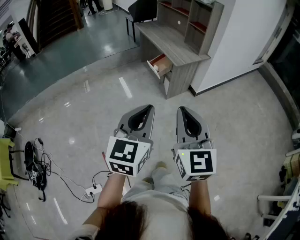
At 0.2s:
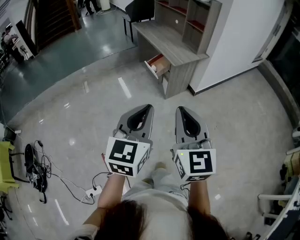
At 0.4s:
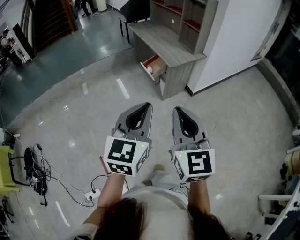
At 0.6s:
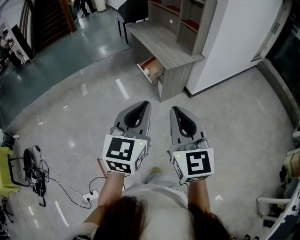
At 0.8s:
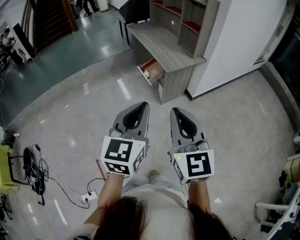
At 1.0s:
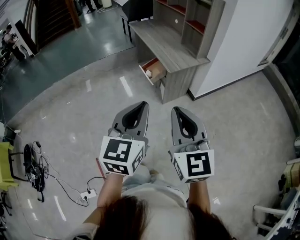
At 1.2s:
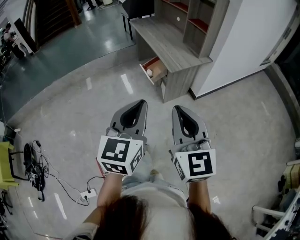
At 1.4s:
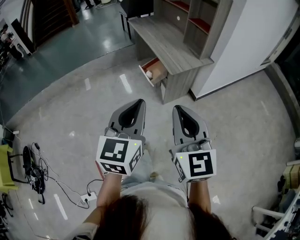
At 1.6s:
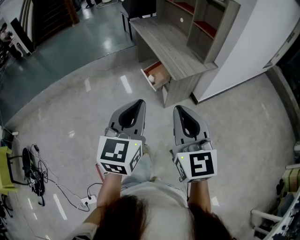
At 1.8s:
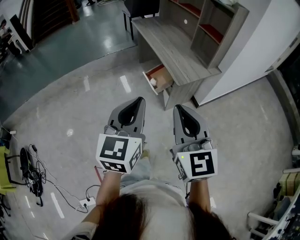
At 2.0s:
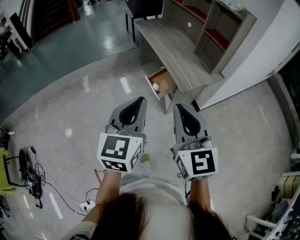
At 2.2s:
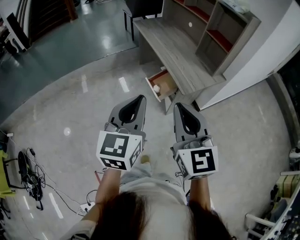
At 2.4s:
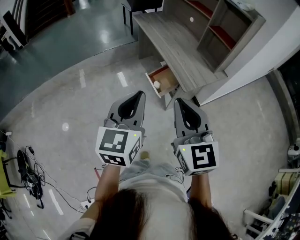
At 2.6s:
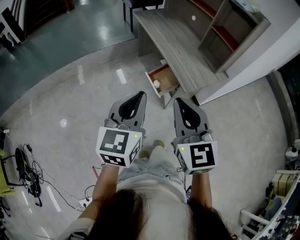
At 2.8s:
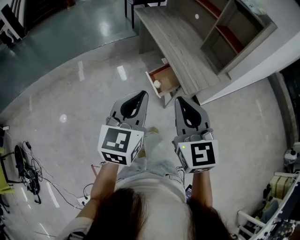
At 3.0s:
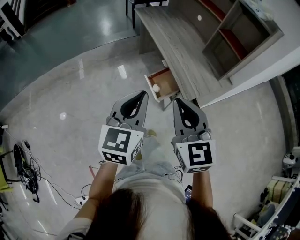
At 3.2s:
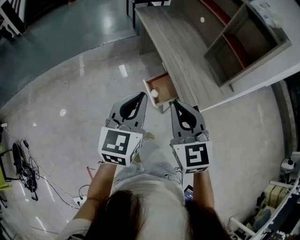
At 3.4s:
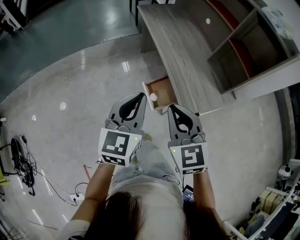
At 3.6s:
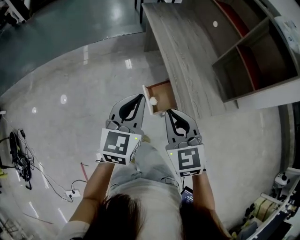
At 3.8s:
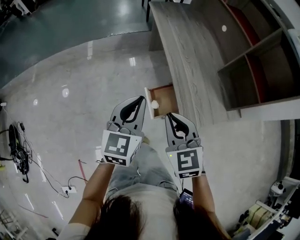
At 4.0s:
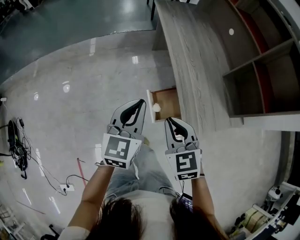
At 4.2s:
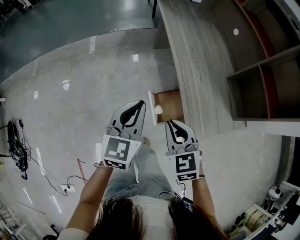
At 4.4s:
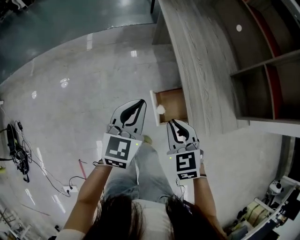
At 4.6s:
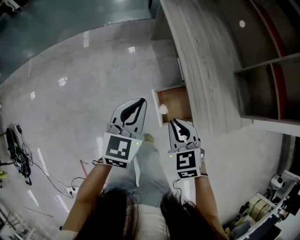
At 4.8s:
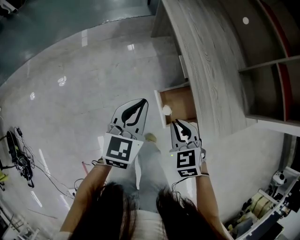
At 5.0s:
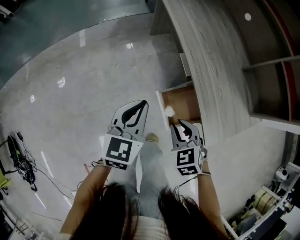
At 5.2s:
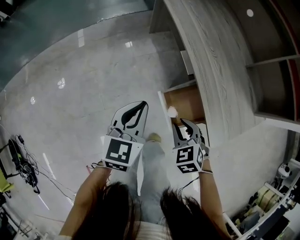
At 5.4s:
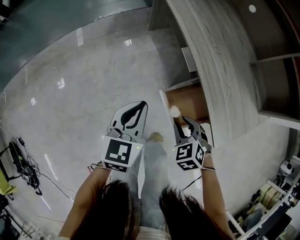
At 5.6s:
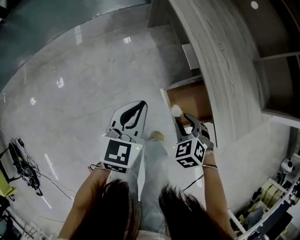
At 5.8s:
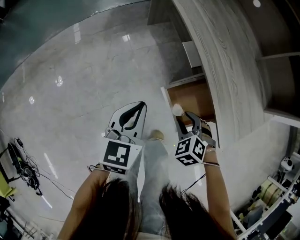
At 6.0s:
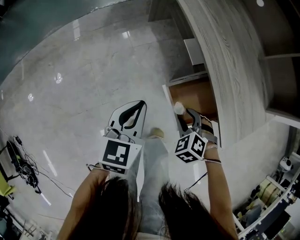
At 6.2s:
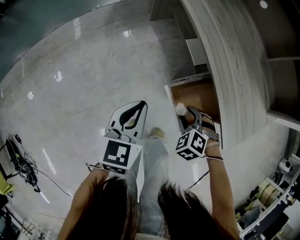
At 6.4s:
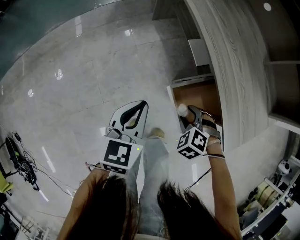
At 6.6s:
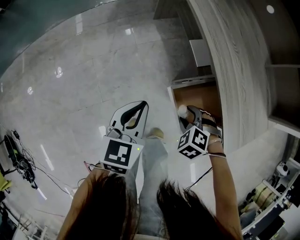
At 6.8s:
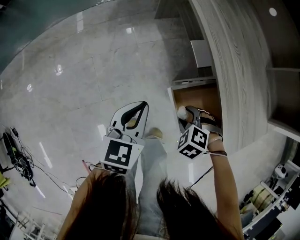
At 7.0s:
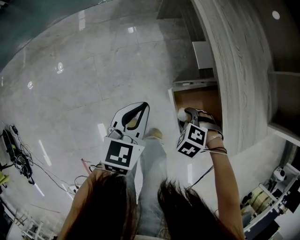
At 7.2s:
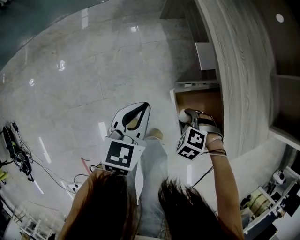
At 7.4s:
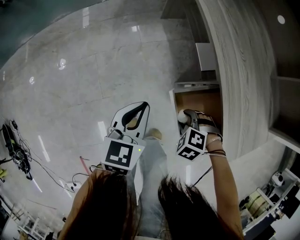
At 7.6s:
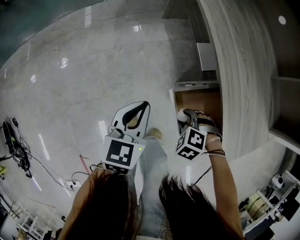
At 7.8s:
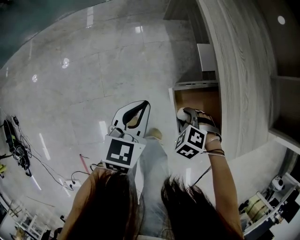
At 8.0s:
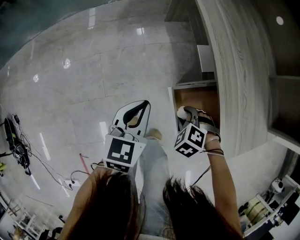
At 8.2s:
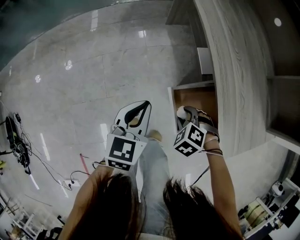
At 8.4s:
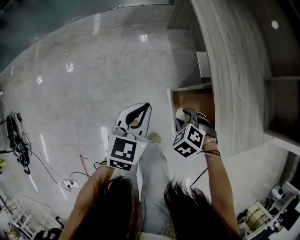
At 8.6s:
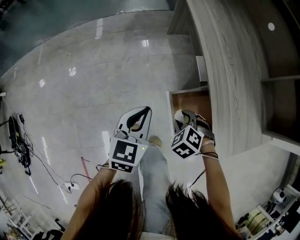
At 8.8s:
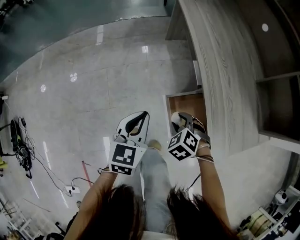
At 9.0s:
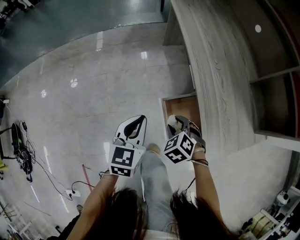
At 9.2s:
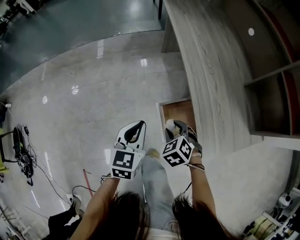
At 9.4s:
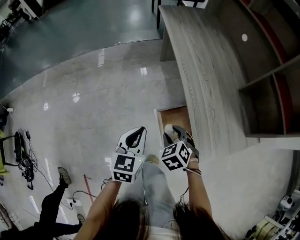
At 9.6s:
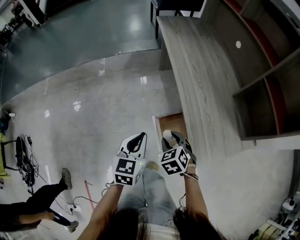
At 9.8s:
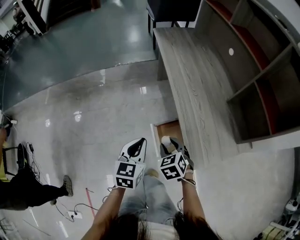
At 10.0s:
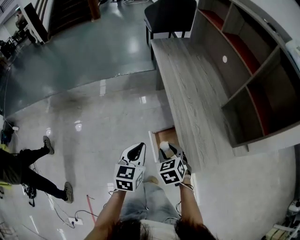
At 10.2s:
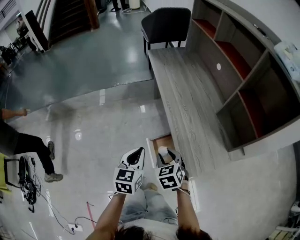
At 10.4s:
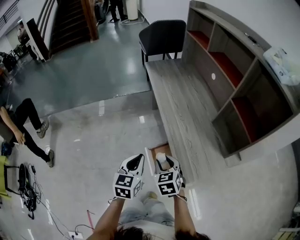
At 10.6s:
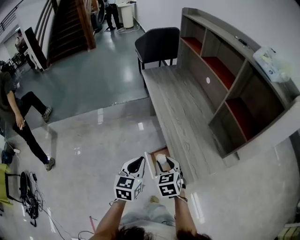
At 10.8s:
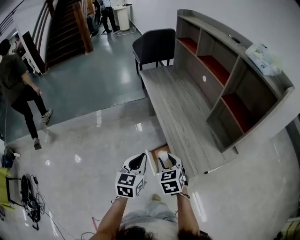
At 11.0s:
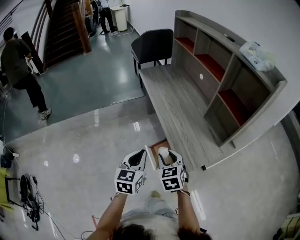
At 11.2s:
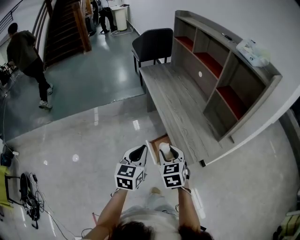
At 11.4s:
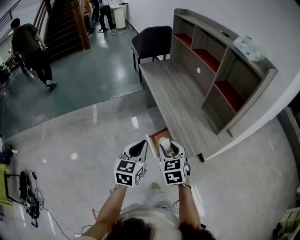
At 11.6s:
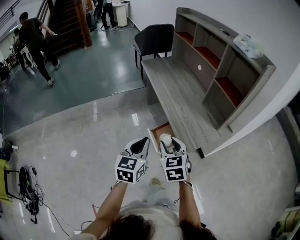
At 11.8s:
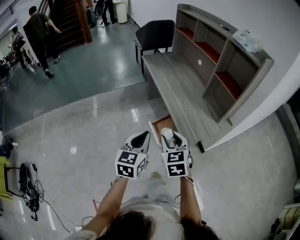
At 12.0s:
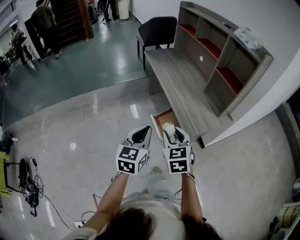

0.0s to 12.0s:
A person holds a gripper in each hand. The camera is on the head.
0.0s to 1.6s: Both grippers move forward, some 25 cm.
1.6s to 3.0s: The grippers both shift forward by approximately 25 cm.
3.0s to 4.4s: The left gripper travels forward and downward by some 25 cm; the right gripper is displaced downward and forward by about 30 cm, and swivels about 30 degrees.
4.4s to 6.0s: Both grippers move downward, some 20 cm. The right gripper changes its angle by about 40 degrees, and opens up.
6.0s to 7.6s: The right gripper goes roughly 5 cm downward, and swivels roughly 30 degrees.
7.6s to 9.0s: The left gripper travels upward by roughly 5 cm. Meanwhile the right gripper goes some 10 cm upward, and swivels about 30 degrees.
9.0s to 10.4s: The right gripper heads upward, covering about 20 cm, and swivels about 40 degrees. The left gripper travels upward and to the right by approximately 15 cm.
10.4s to 12.0s: The two grippers go some 20 cm backward and upward.

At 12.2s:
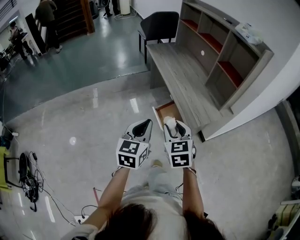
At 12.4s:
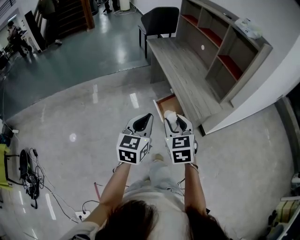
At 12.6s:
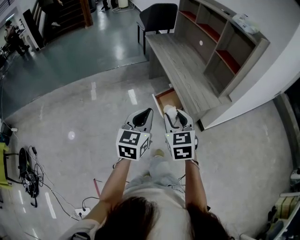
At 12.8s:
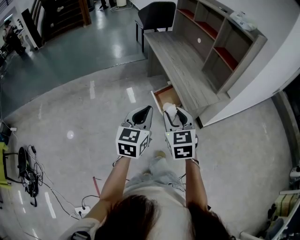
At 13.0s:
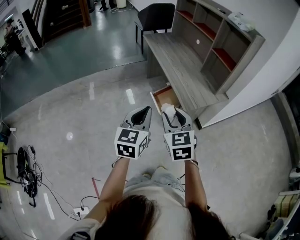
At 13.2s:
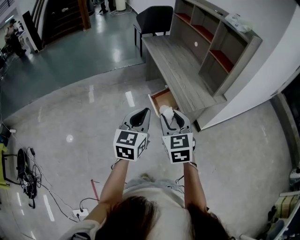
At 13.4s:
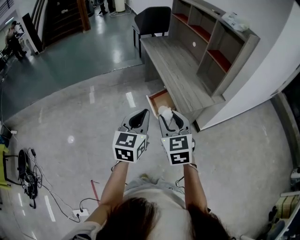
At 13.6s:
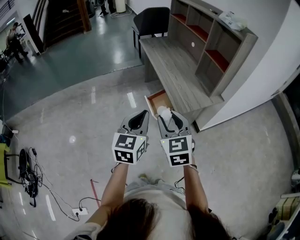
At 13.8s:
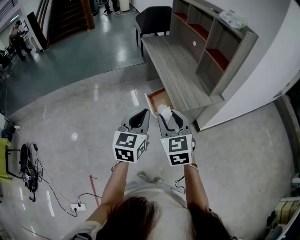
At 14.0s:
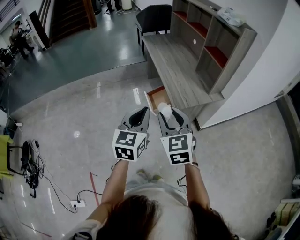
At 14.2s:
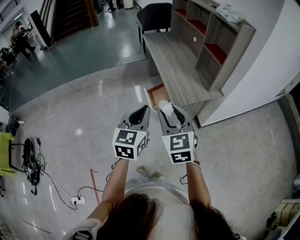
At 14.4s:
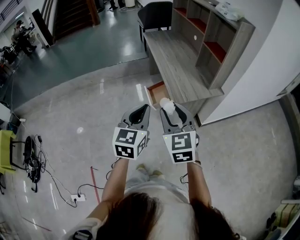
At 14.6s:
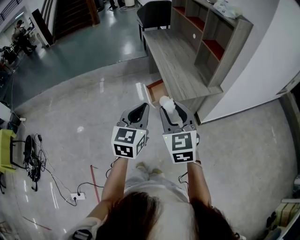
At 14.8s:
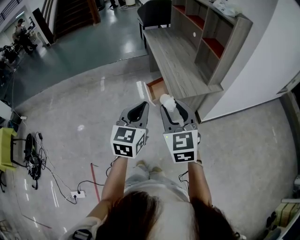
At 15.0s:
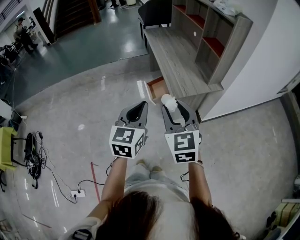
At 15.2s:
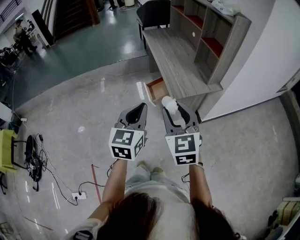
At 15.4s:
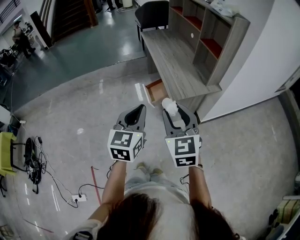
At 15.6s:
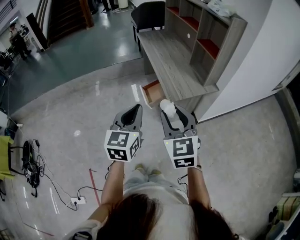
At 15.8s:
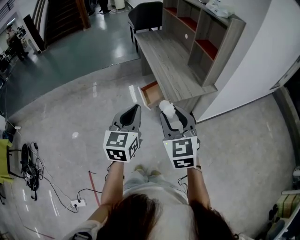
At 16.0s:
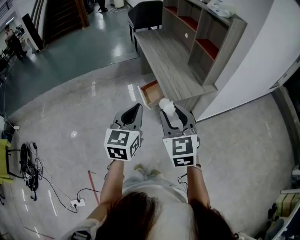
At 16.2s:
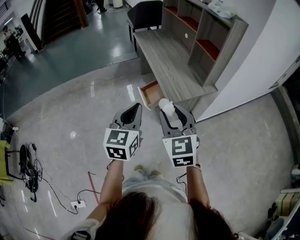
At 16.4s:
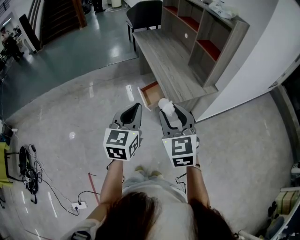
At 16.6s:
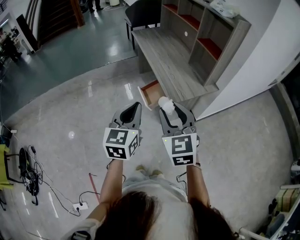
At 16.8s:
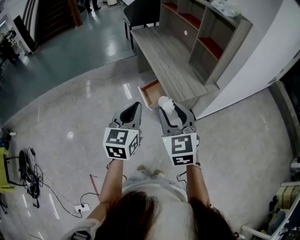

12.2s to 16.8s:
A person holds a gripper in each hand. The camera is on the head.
12.2s to 13.8s: The left gripper shifts about 10 cm backward and to the right. Meanwhile the right gripper shifts about 15 cm backward, upward and to the right.
13.8s to 15.2s: The right gripper moves to the right and backward, some 10 cm. The left gripper heads backward, covering approximately 5 cm.
15.2s to 16.8s: The left gripper goes some 10 cm forward and to the left; the right gripper shifts approximately 10 cm to the left and forward.

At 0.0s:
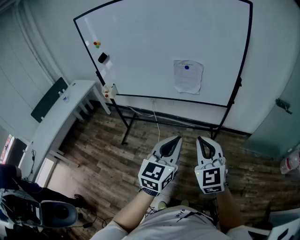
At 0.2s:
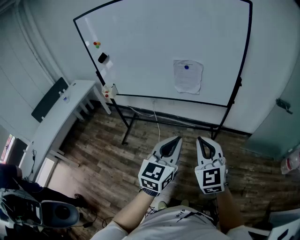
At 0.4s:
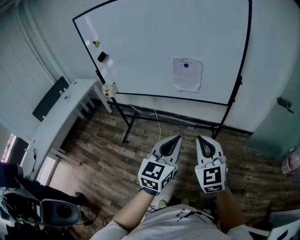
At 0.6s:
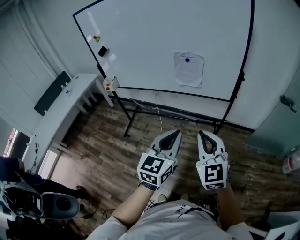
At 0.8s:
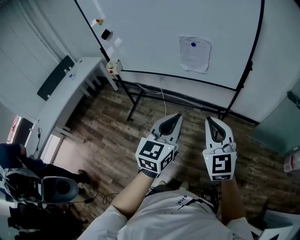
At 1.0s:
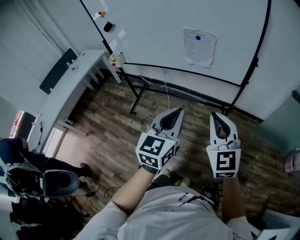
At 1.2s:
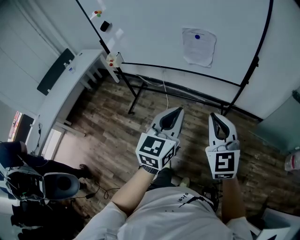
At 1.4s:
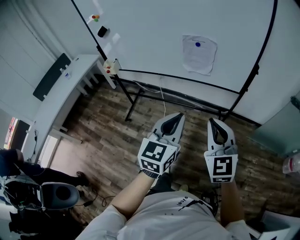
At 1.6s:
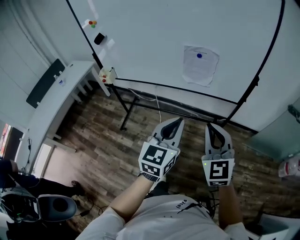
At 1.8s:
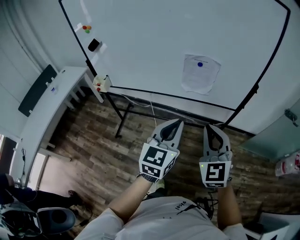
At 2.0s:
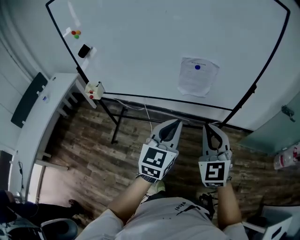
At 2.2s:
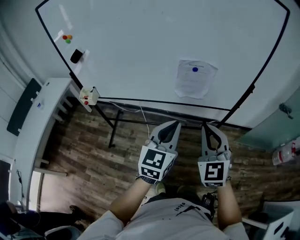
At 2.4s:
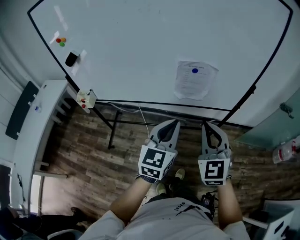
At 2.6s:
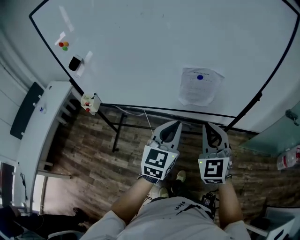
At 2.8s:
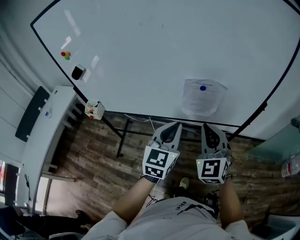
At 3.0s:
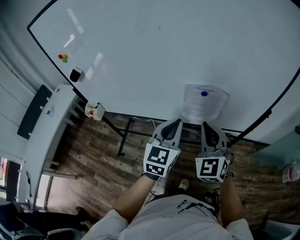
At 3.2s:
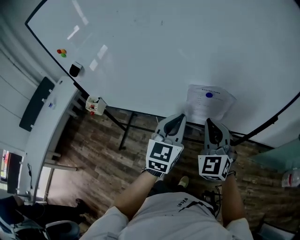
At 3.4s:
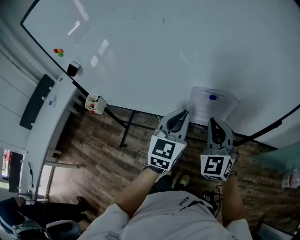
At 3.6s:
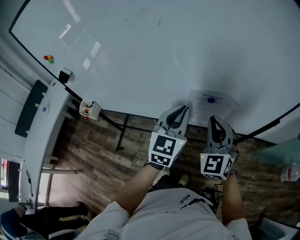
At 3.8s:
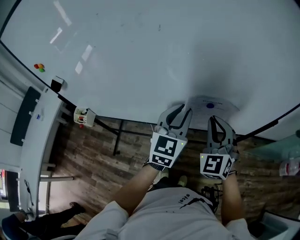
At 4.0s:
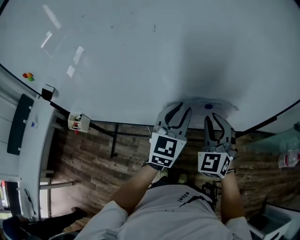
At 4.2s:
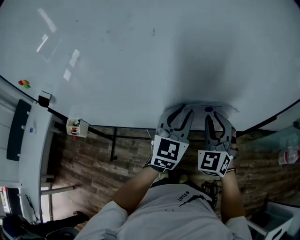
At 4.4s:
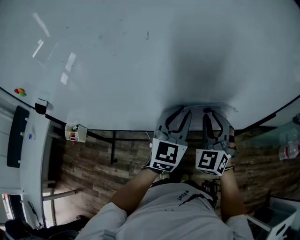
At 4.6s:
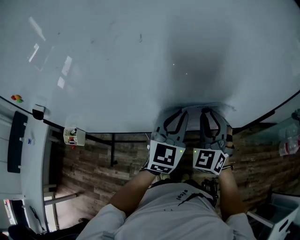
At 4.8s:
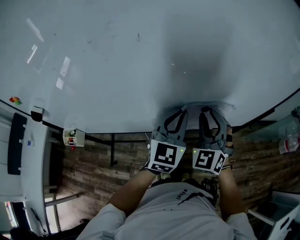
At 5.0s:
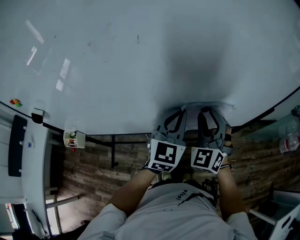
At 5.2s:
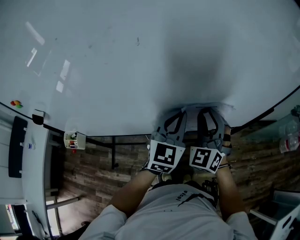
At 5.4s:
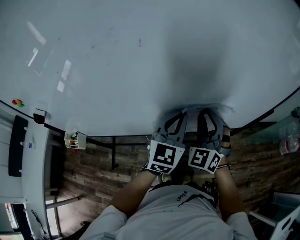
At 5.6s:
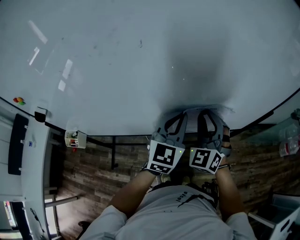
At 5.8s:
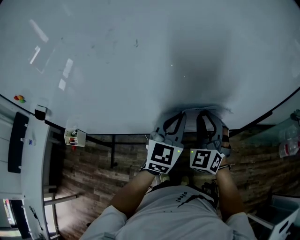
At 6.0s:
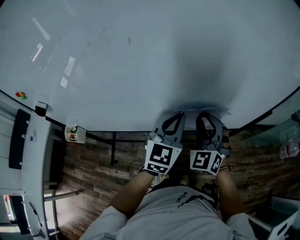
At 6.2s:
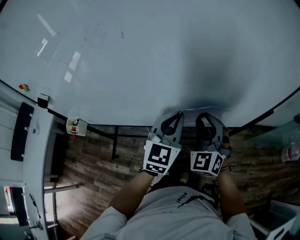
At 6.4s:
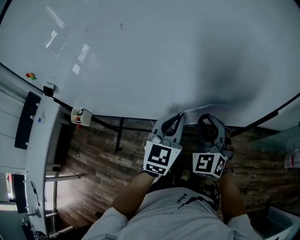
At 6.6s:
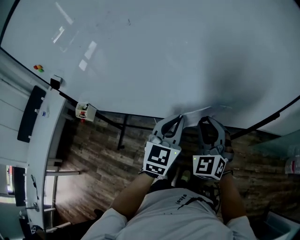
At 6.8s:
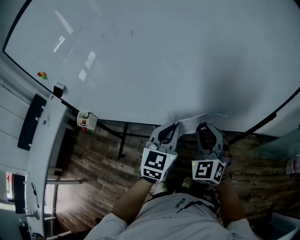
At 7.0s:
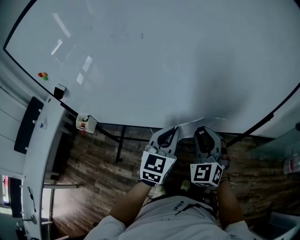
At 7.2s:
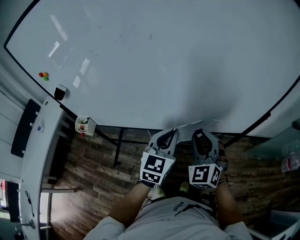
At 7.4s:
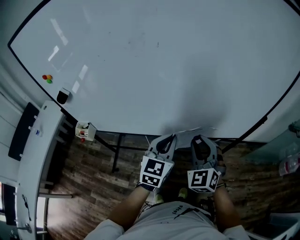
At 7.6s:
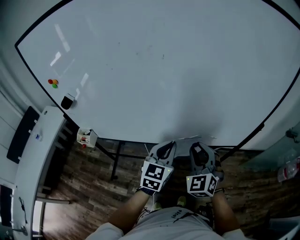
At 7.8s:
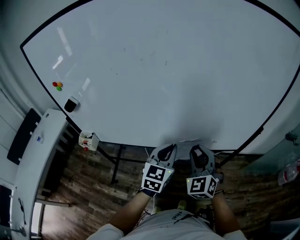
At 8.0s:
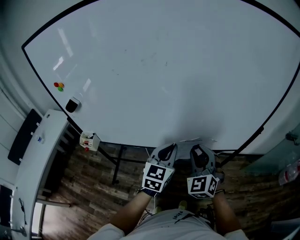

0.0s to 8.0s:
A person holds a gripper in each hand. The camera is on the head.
0.0s to 1.6s: Both grippers travel together forward, about 10 cm.
1.6s to 3.2s: The two grippers go roughly 30 cm forward.
3.2s to 4.8s: Both grippers travel together forward, about 10 cm. The right gripper changes its angle by roughly 20 degrees, and opens.
4.8s to 6.4s: The left gripper ends up about 5 cm from where it was. The right gripper shifts by approximately 5 cm.
6.4s to 8.0s: Both grippers move backward and to the left, approximately 10 cm.
